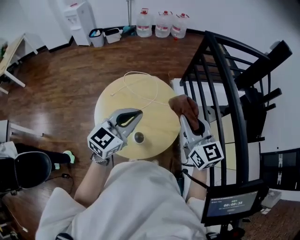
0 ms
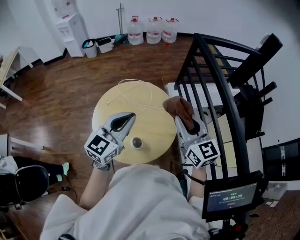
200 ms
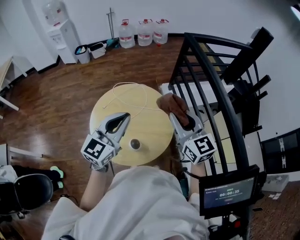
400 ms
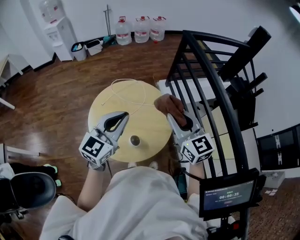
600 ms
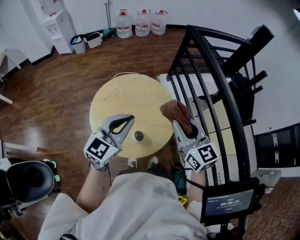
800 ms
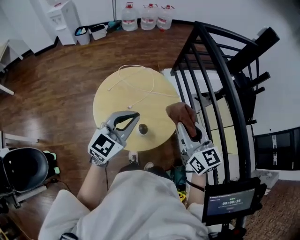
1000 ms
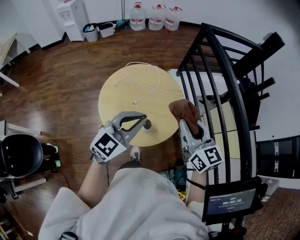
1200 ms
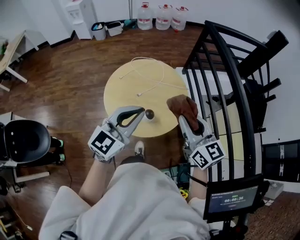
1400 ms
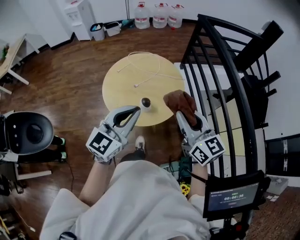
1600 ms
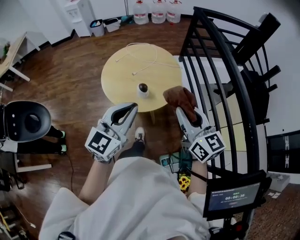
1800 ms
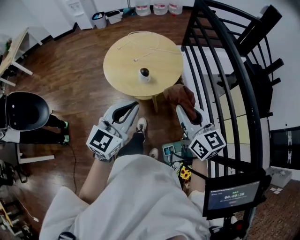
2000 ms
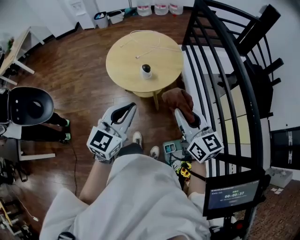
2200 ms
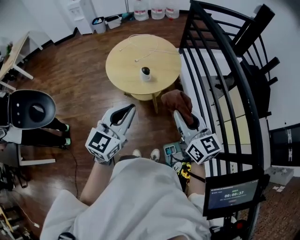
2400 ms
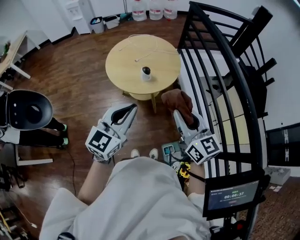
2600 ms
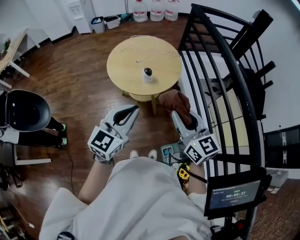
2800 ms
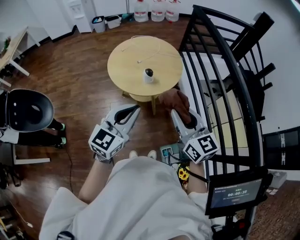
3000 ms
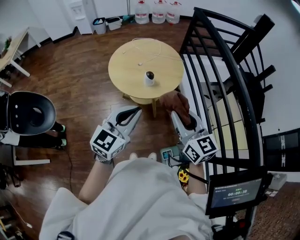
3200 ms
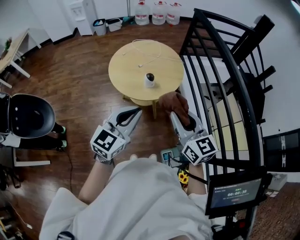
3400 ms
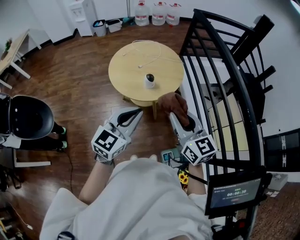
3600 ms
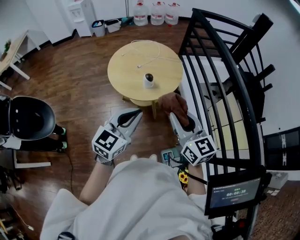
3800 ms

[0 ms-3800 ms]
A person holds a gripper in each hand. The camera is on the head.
0 ms to 1200 ms: The grippers both shift backward by some 5 cm.
1200 ms to 2600 ms: The grippers both shift backward by about 25 cm.
2600 ms to 3800 ms: There are only small adjustments of the grippers.

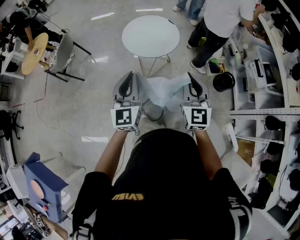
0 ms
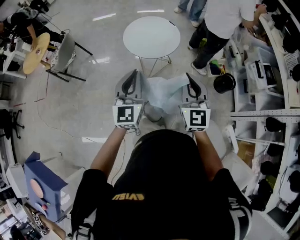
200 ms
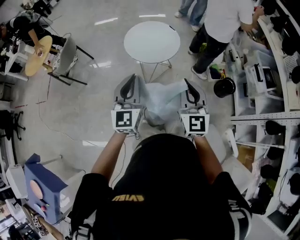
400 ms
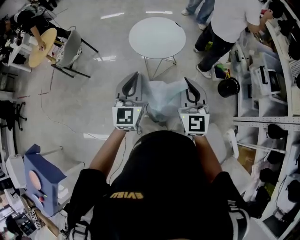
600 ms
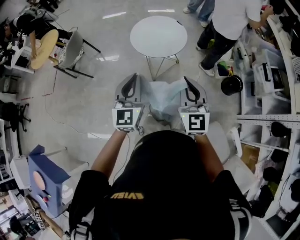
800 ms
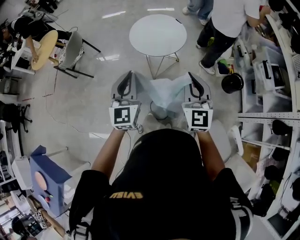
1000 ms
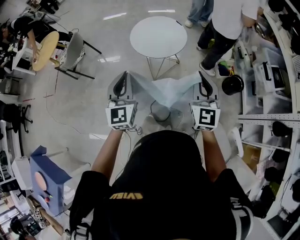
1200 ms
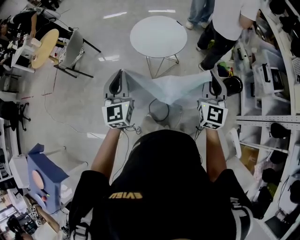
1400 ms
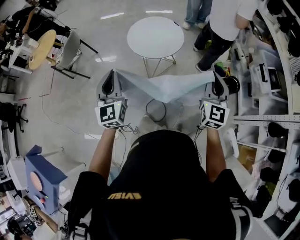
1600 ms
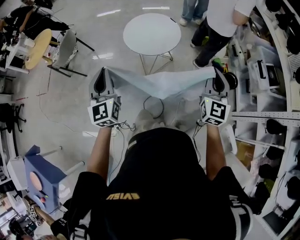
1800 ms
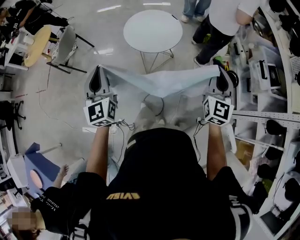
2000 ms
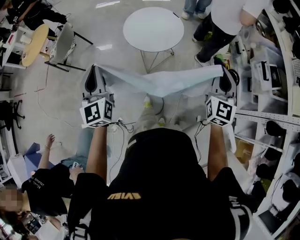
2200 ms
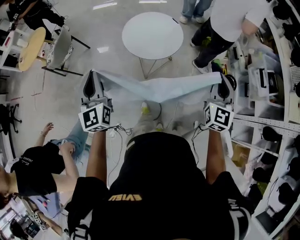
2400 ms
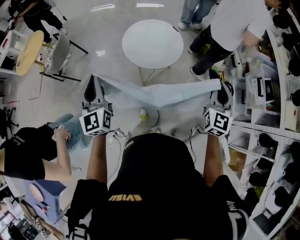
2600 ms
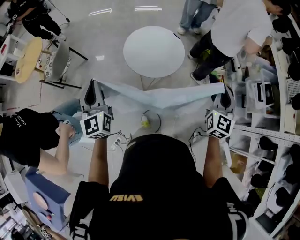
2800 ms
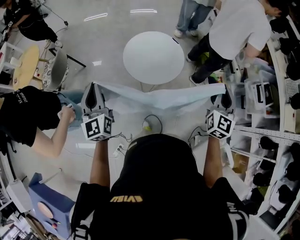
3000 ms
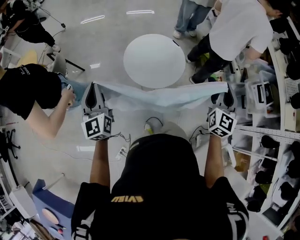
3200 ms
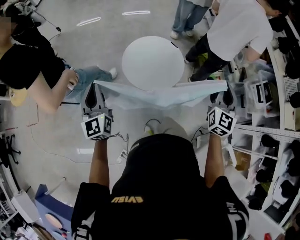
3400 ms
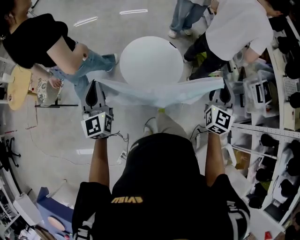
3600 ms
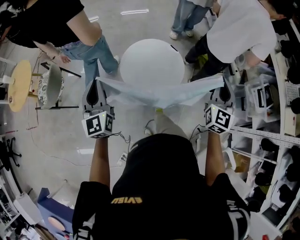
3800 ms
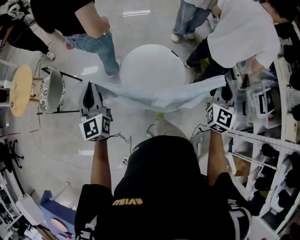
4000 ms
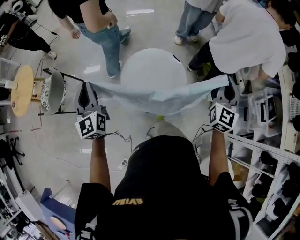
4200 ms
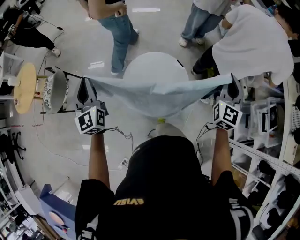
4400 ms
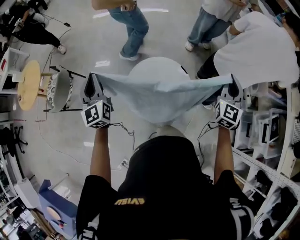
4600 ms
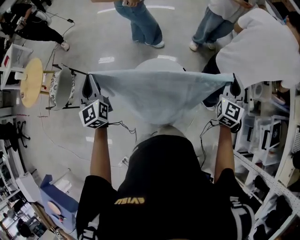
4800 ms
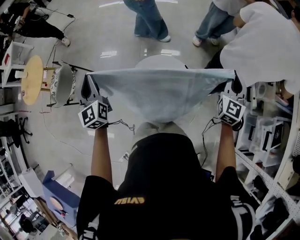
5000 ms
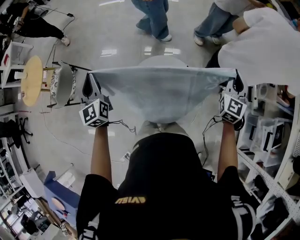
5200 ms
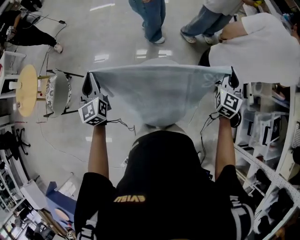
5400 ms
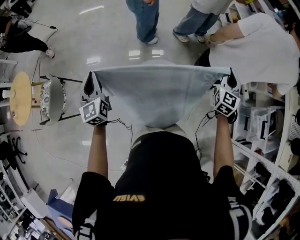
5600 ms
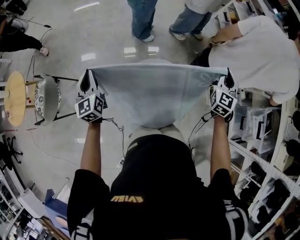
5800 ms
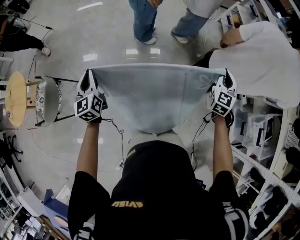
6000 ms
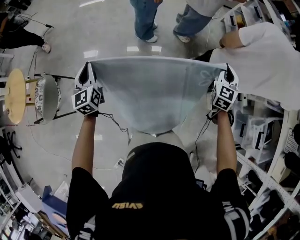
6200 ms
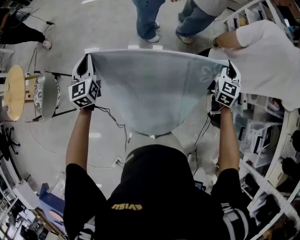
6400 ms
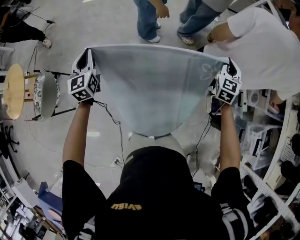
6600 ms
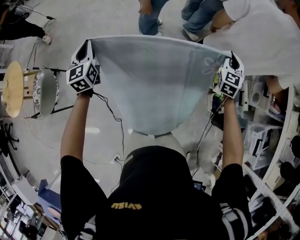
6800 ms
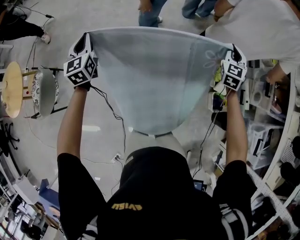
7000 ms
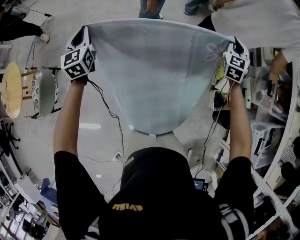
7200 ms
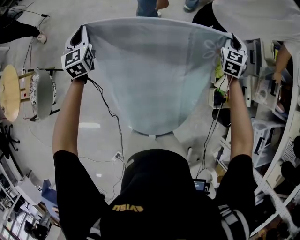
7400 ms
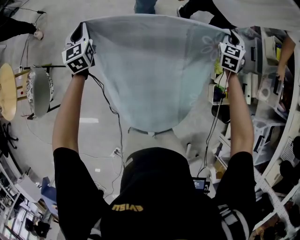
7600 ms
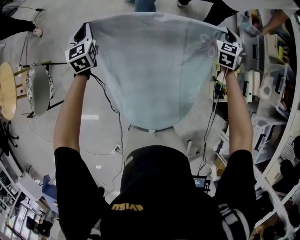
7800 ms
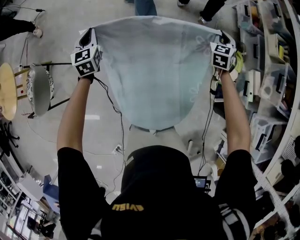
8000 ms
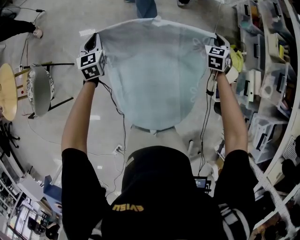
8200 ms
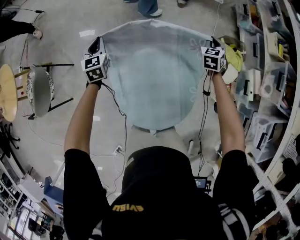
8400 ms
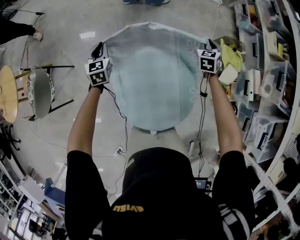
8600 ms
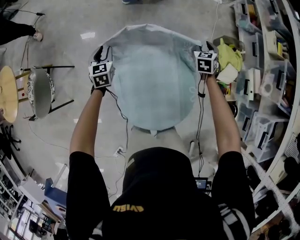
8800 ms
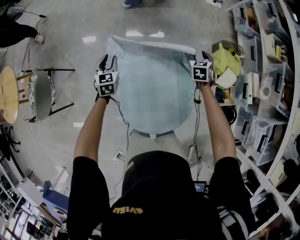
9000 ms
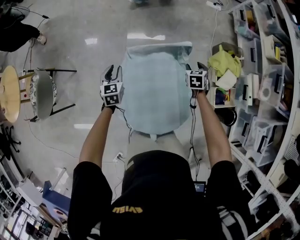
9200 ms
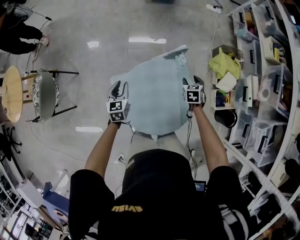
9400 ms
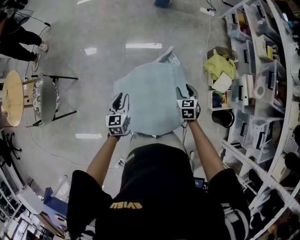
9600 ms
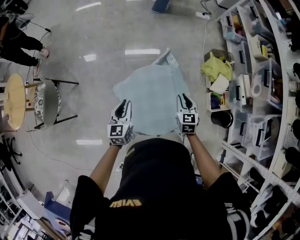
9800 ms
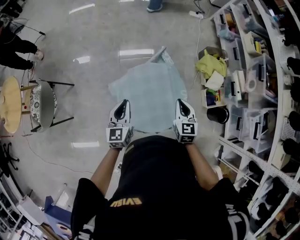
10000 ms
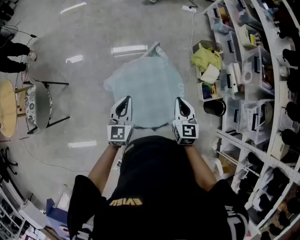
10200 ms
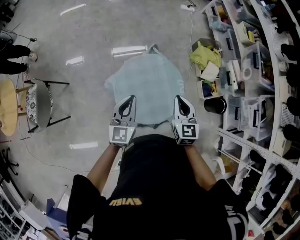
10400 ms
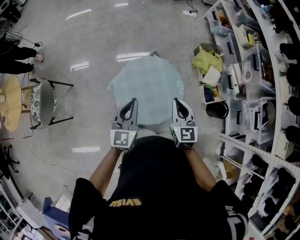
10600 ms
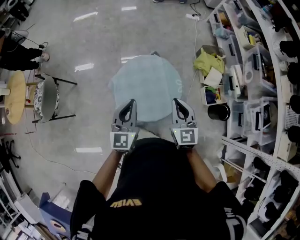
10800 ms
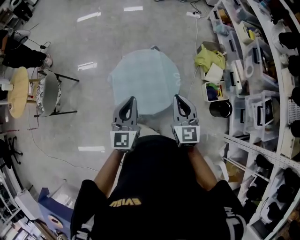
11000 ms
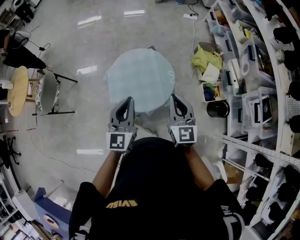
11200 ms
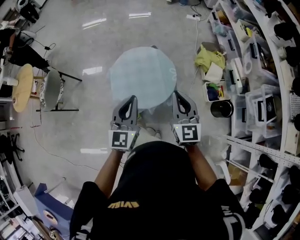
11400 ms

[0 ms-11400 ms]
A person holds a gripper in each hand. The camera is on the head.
0 ms to 1400 ms: The right gripper travels to the right by approximately 10 cm.
1400 ms to 2800 ms: The left gripper travels forward and to the left by approximately 25 cm. Meanwhile the right gripper heads forward, covering roughly 15 cm.
2800 ms to 4200 ms: Both grippers travel together forward, about 30 cm.
4200 ms to 5600 ms: The two grippers go approximately 25 cm forward.
5600 ms to 7200 ms: Both grippers move forward, roughly 25 cm.
7200 ms to 8600 ms: The two grippers go approximately 20 cm downward. The right gripper turns by some 20 degrees, and opens up.
8600 ms to 10000 ms: Both grippers move backward, about 30 cm. The left gripper rotates some 20 degrees, and opens, then closes again. The right gripper rotates some 20 degrees, and closes its fingers.
10000 ms to 11400 ms: The right gripper shifts about 30 cm backward, upward and to the right, and turns by some 30 degrees, while the left gripper shifts about 35 cm backward, to the right and upward.

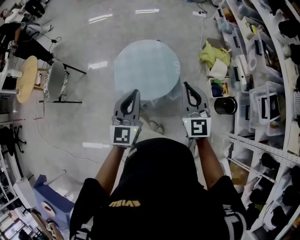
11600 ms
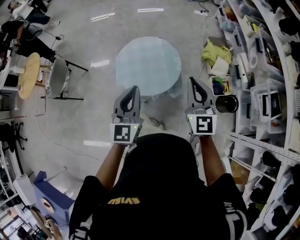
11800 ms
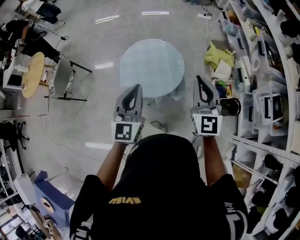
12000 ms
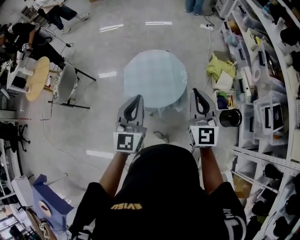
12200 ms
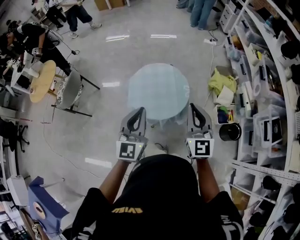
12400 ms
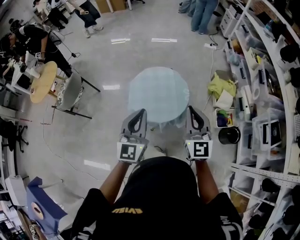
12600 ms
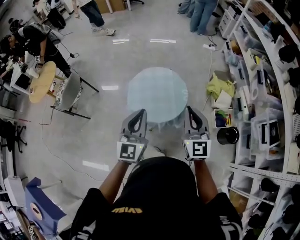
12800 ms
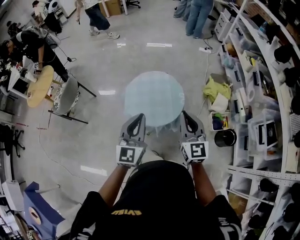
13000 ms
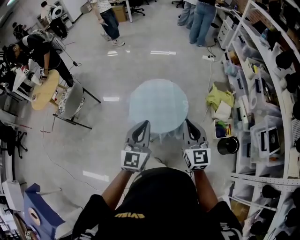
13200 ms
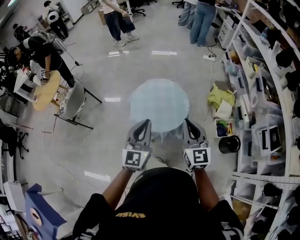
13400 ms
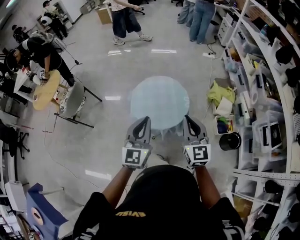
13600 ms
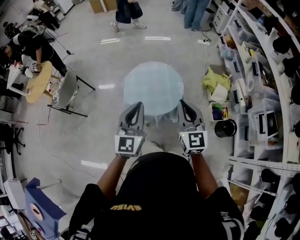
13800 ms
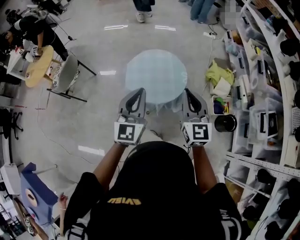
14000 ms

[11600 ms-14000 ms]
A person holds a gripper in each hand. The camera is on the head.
11600 ms to 12800 ms: The right gripper shifts by about 5 cm. Meanwhile the left gripper ends up some 5 cm from where it was.
12800 ms to 14000 ms: There are only small adjustments of the grippers.

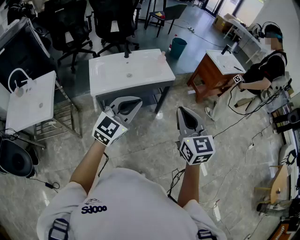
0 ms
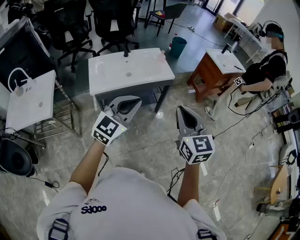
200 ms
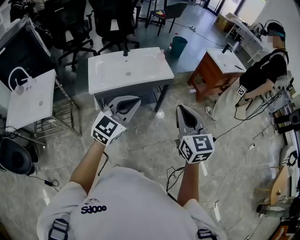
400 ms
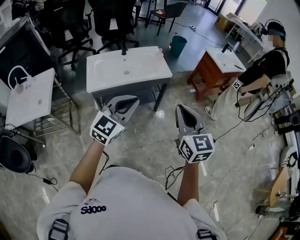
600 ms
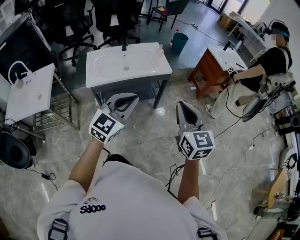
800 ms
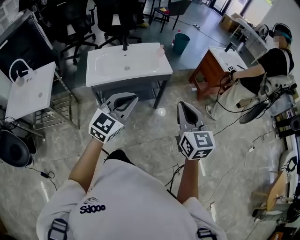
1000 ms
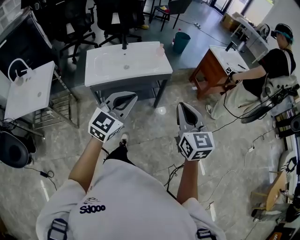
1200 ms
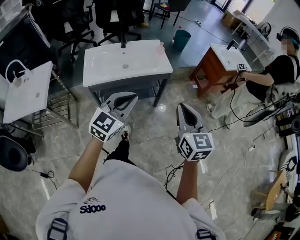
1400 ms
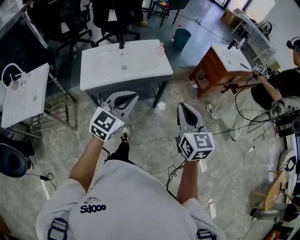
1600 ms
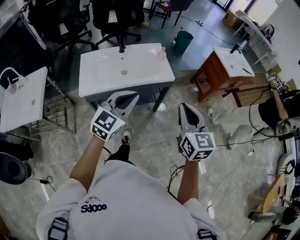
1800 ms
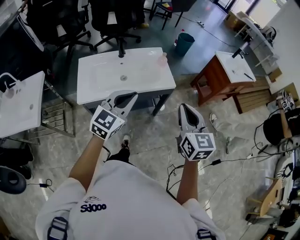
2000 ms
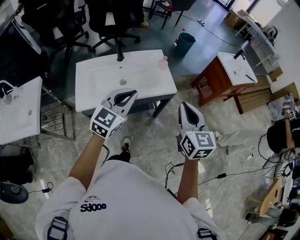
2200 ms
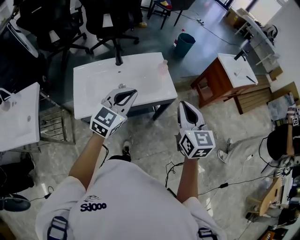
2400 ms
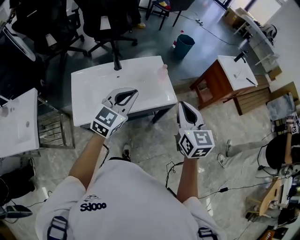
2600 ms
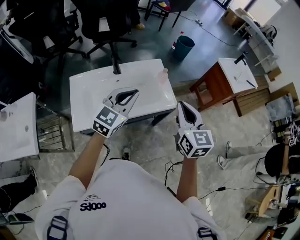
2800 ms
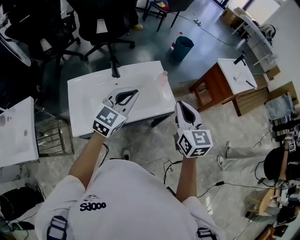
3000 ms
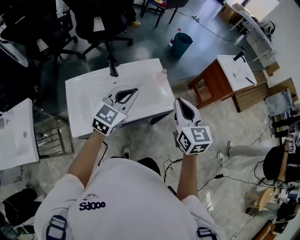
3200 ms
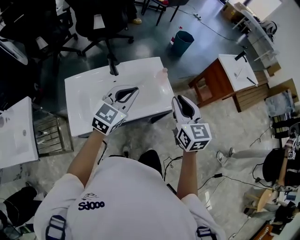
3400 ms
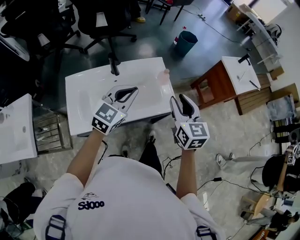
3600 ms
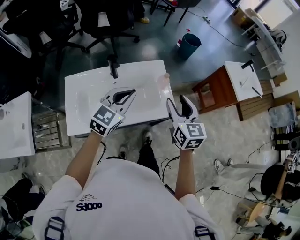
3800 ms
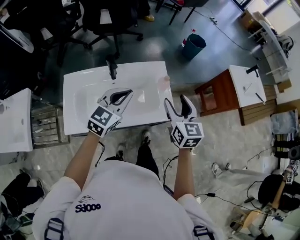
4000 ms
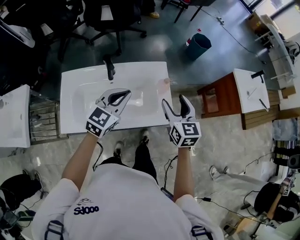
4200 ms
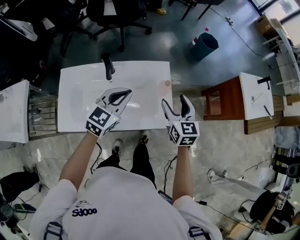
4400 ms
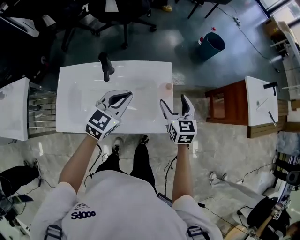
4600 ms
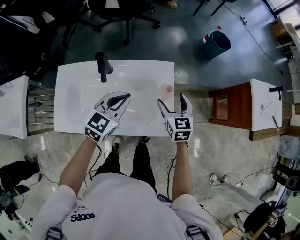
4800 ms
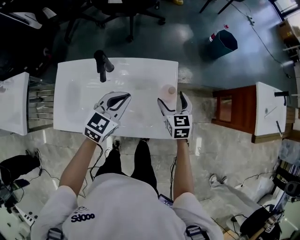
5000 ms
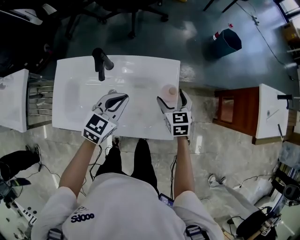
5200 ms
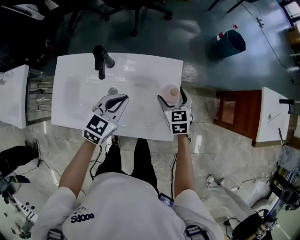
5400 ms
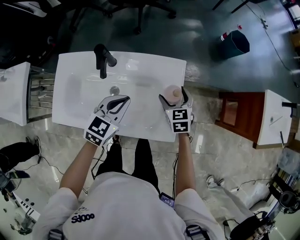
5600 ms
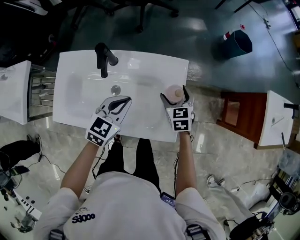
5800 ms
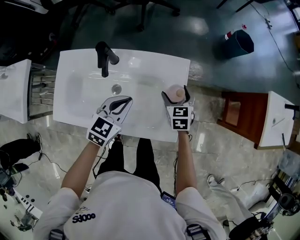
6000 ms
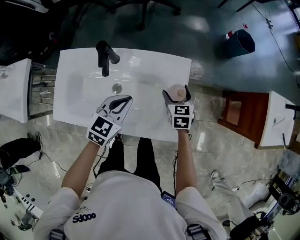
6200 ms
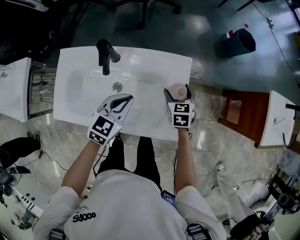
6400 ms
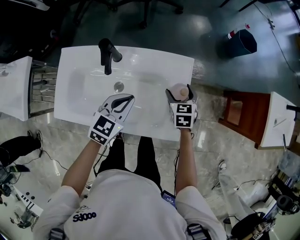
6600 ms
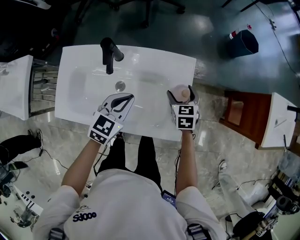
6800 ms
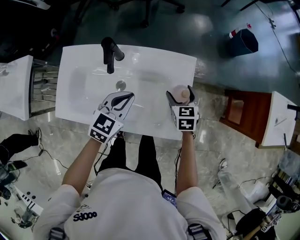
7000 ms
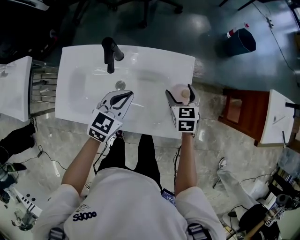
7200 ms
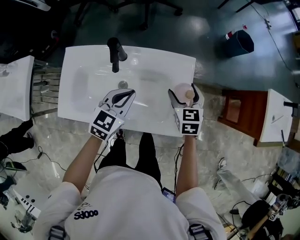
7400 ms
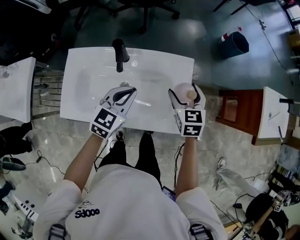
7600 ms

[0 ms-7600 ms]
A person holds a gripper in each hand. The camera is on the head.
0 ms to 1600 ms: The left gripper shifts approximately 5 cm forward; the right gripper is displaced forward, to the right and downward by roughly 10 cm.
1600 ms to 3000 ms: The grippers both shift forward by approximately 30 cm.
3000 ms to 4600 ms: The right gripper travels forward and downward by roughly 30 cm, and opens up; the left gripper travels forward and downward by roughly 15 cm.
4600 ms to 6000 ms: The left gripper travels downward by roughly 10 cm. The right gripper is displaced downward and forward by approximately 15 cm.
6000 ms to 7600 ms: The left gripper moves some 5 cm, while the right gripper moves upward, some 10 cm.
